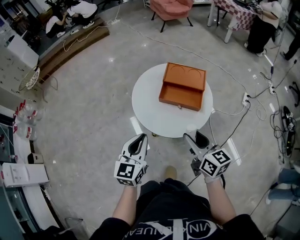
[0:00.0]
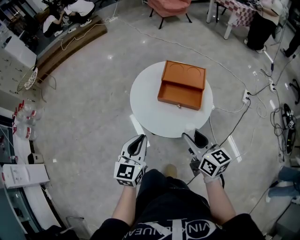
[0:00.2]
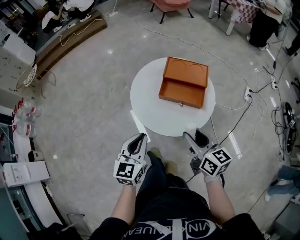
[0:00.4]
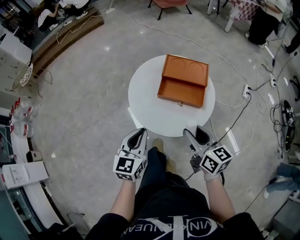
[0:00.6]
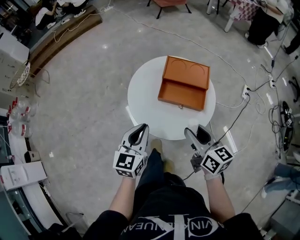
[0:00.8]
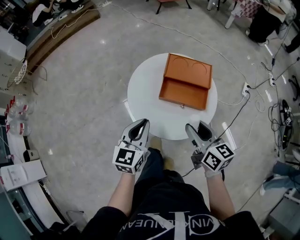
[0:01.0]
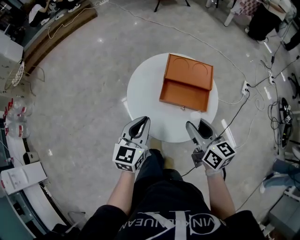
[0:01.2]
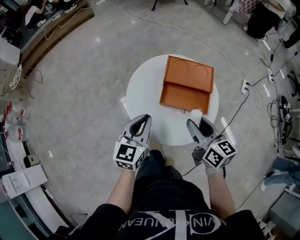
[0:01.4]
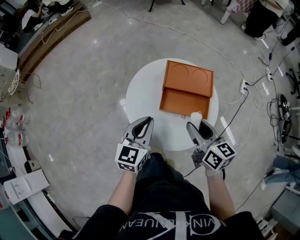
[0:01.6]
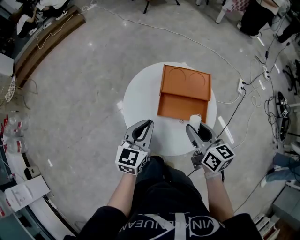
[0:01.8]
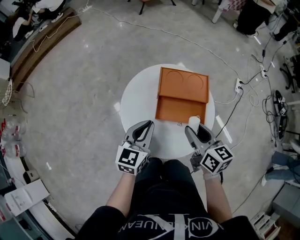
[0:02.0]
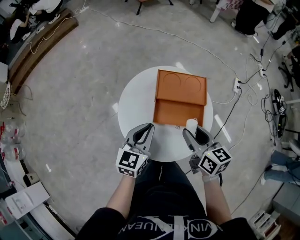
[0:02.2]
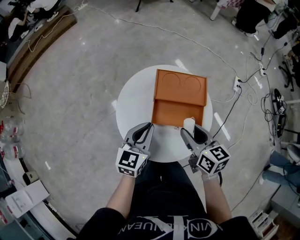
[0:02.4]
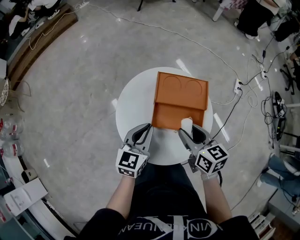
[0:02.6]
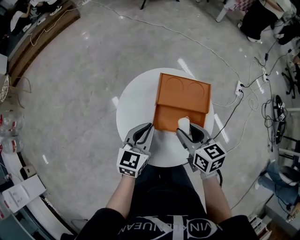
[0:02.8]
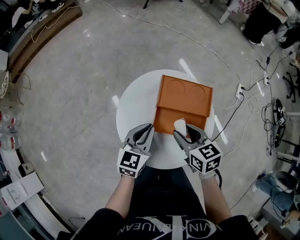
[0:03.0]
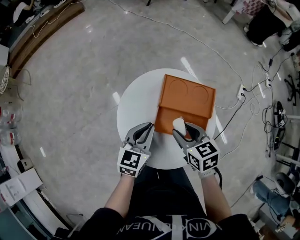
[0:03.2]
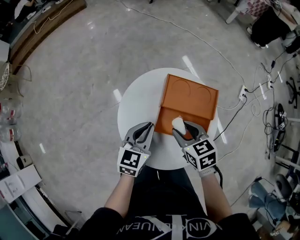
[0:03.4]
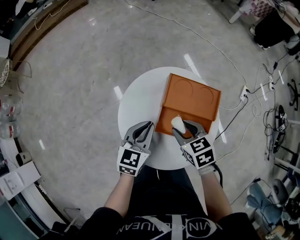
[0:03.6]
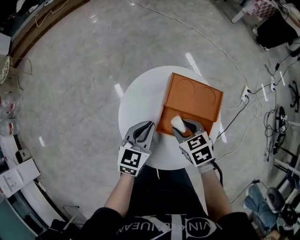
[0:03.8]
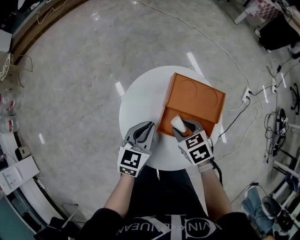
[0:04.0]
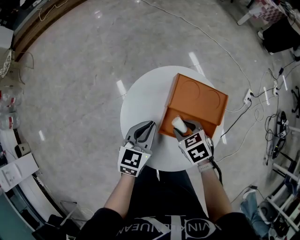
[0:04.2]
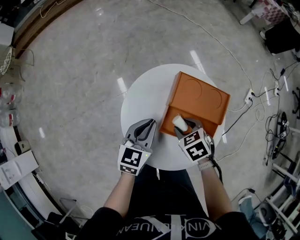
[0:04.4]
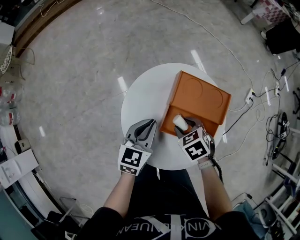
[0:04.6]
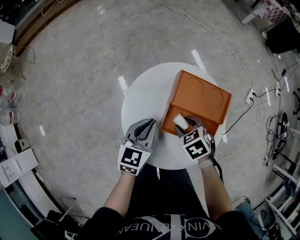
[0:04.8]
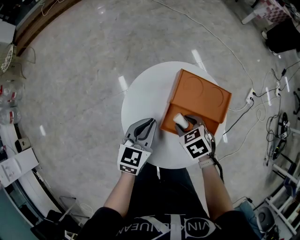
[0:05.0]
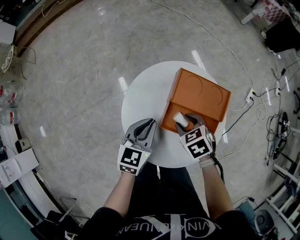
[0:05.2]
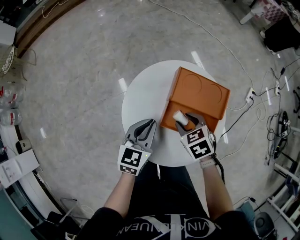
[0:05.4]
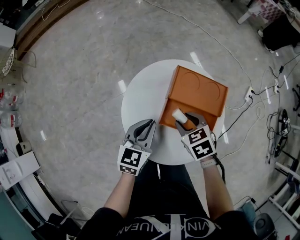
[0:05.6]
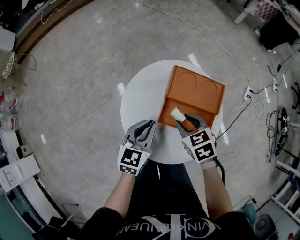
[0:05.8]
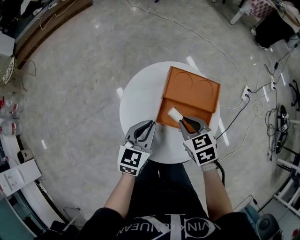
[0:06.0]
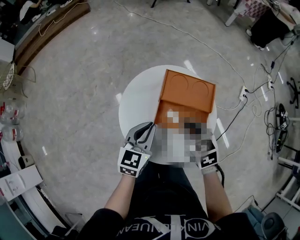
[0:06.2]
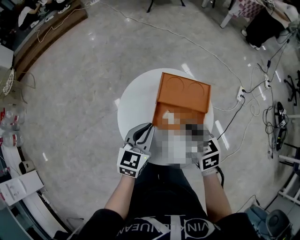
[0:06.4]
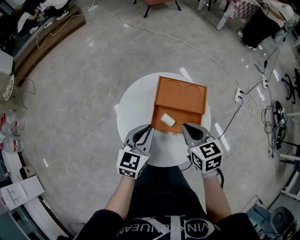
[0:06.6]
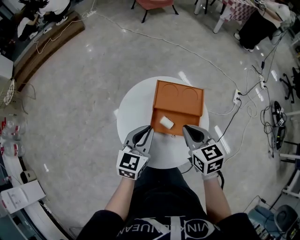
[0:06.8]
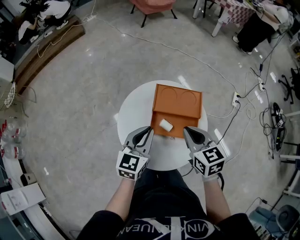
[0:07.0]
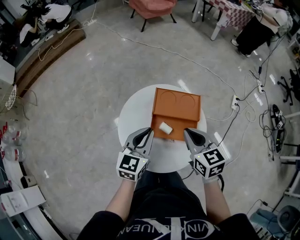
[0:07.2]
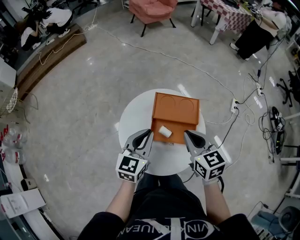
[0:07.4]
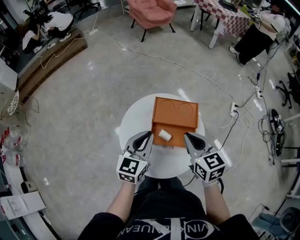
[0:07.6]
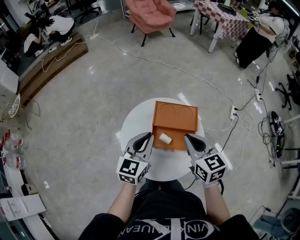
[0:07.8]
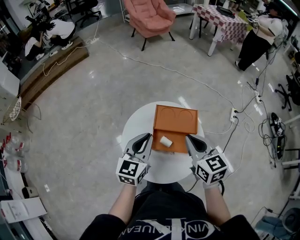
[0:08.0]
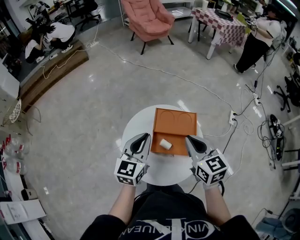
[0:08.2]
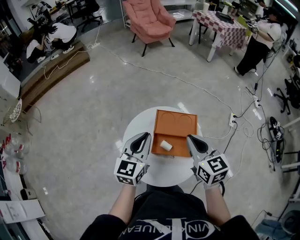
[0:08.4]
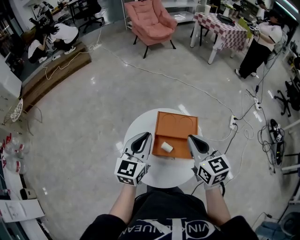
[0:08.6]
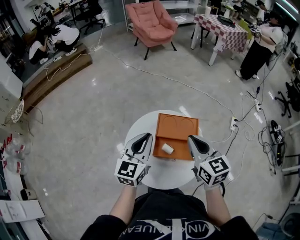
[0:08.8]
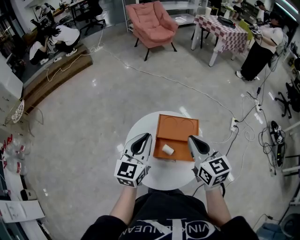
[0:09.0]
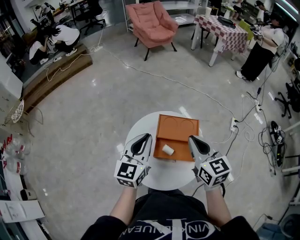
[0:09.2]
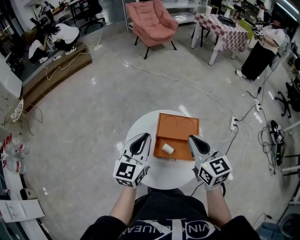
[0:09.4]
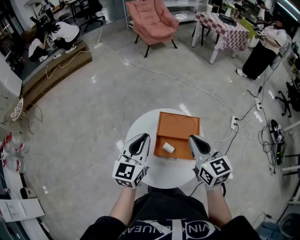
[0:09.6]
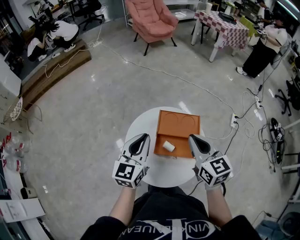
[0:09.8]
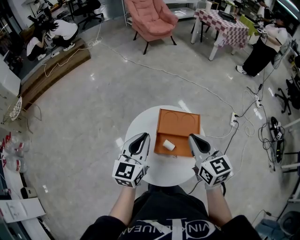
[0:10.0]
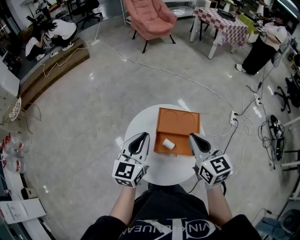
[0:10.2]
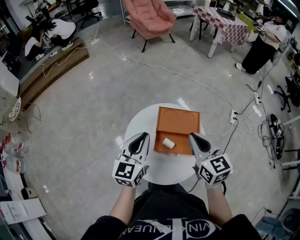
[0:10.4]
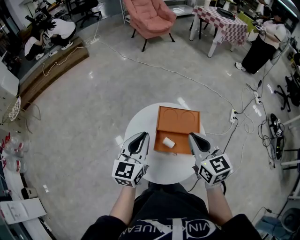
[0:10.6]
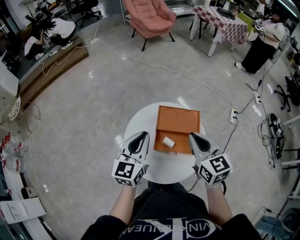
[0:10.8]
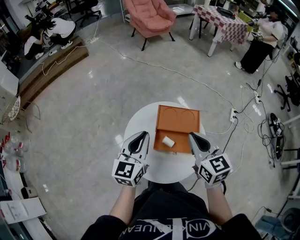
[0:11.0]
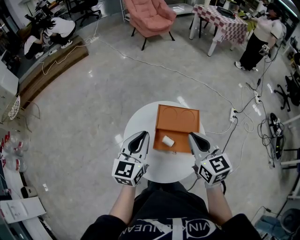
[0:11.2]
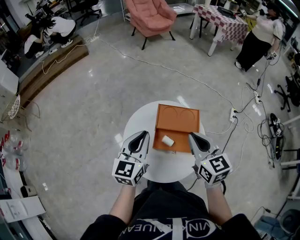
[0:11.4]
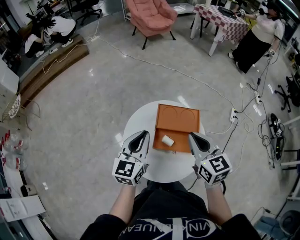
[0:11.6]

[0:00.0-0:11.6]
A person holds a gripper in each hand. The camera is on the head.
0:00.0 to 0:01.4: Both grippers move forward, about 15 cm.
0:01.4 to 0:02.8: Both grippers travel together forward, about 10 cm.
0:02.8 to 0:04.4: The left gripper ends up roughly 5 cm from where it was. The right gripper heads downward, covering about 10 cm, and tips its fingers downward by approximately 30 degrees.
0:04.4 to 0:05.8: The right gripper changes place by about 5 cm.
0:05.8 to 0:07.2: The right gripper travels upward and to the right by approximately 15 cm, changes its angle by about 30 degrees, and closes, while the left gripper shifts roughly 10 cm upward.
0:07.2 to 0:08.8: The two grippers go some 10 cm upward.
0:08.8 to 0:10.2: There are only small adjustments of the grippers.
0:10.2 to 0:11.6: Both grippers stay put.

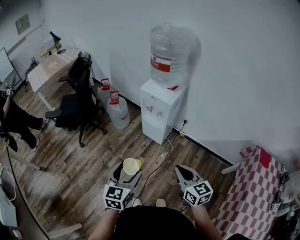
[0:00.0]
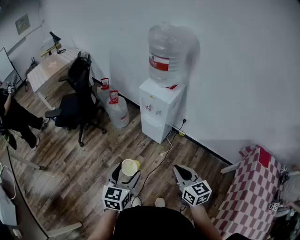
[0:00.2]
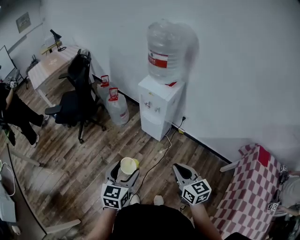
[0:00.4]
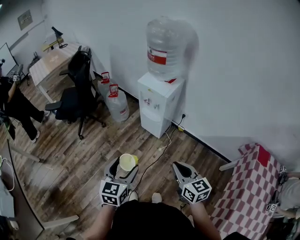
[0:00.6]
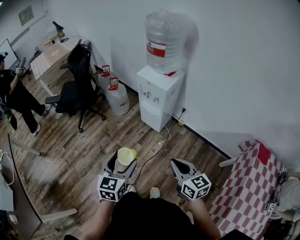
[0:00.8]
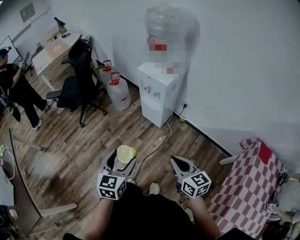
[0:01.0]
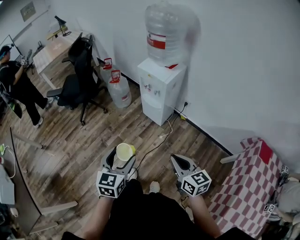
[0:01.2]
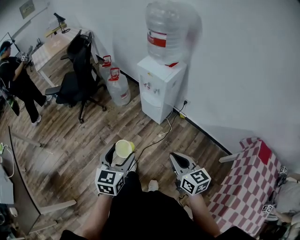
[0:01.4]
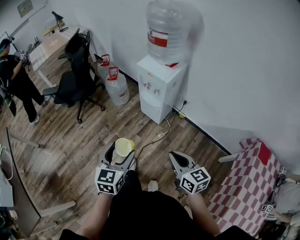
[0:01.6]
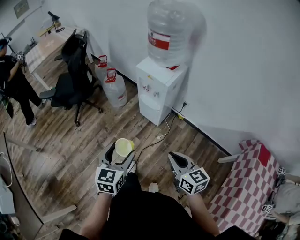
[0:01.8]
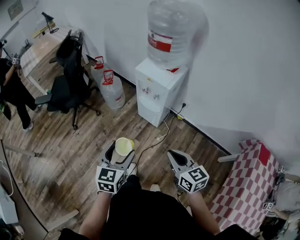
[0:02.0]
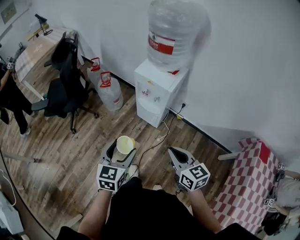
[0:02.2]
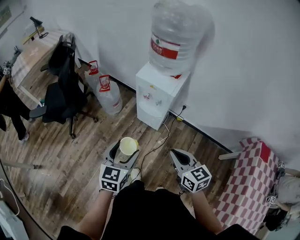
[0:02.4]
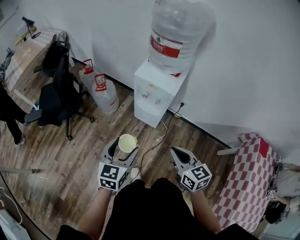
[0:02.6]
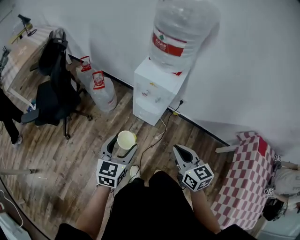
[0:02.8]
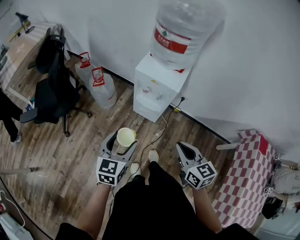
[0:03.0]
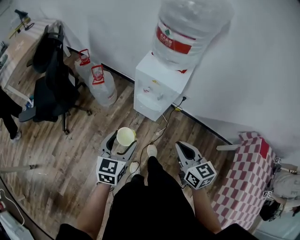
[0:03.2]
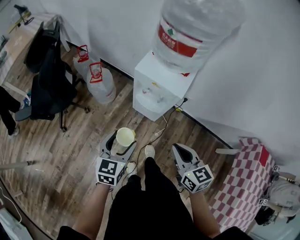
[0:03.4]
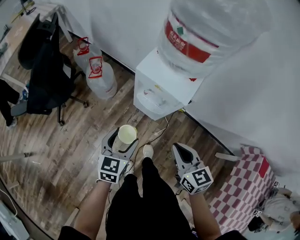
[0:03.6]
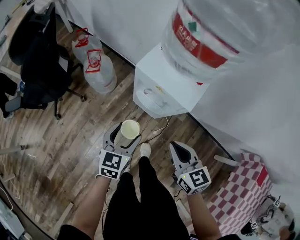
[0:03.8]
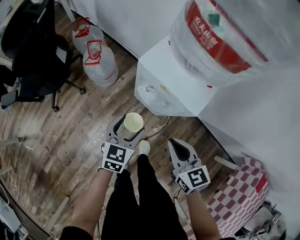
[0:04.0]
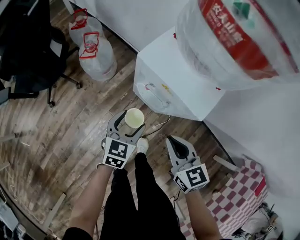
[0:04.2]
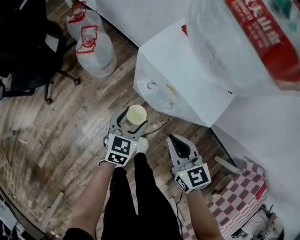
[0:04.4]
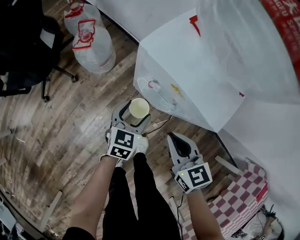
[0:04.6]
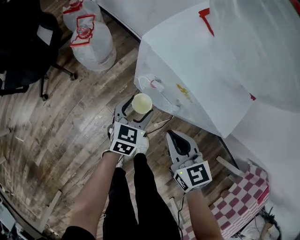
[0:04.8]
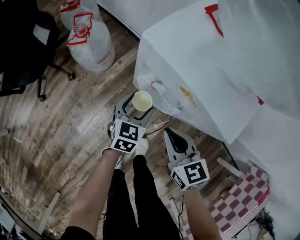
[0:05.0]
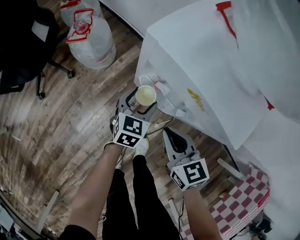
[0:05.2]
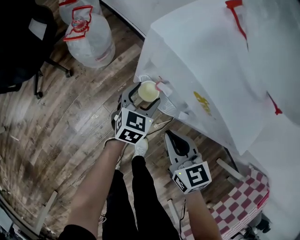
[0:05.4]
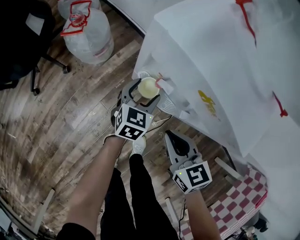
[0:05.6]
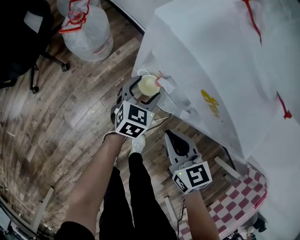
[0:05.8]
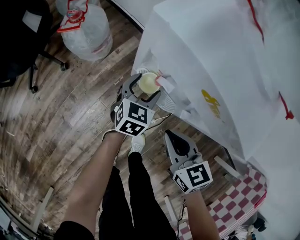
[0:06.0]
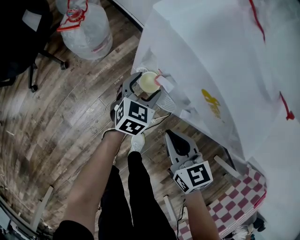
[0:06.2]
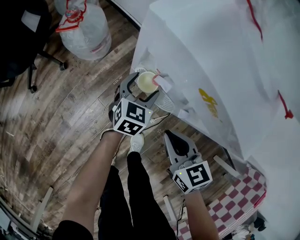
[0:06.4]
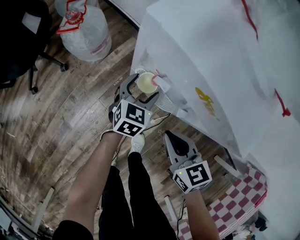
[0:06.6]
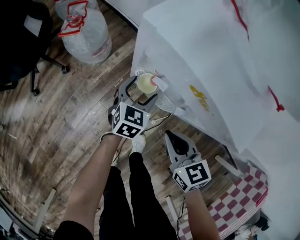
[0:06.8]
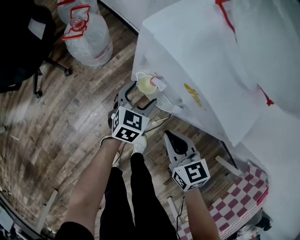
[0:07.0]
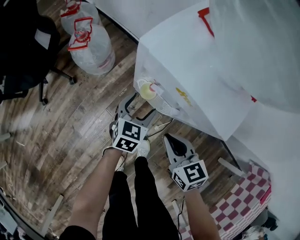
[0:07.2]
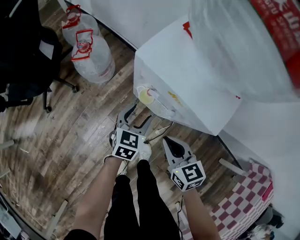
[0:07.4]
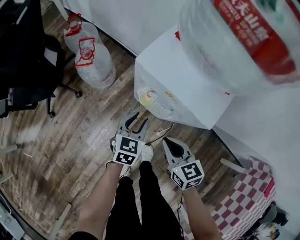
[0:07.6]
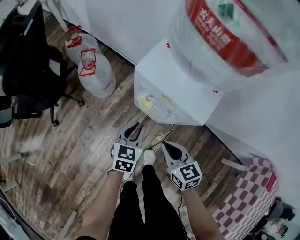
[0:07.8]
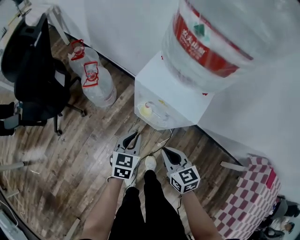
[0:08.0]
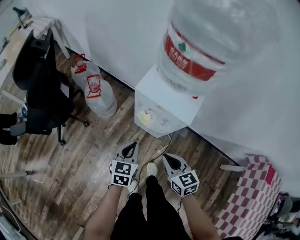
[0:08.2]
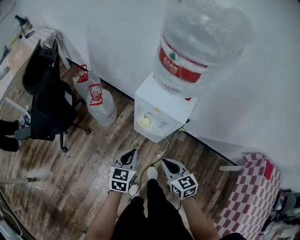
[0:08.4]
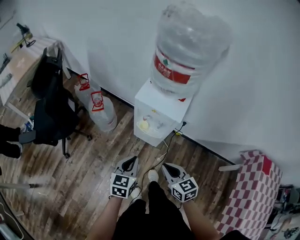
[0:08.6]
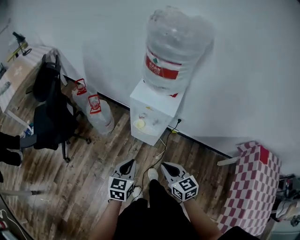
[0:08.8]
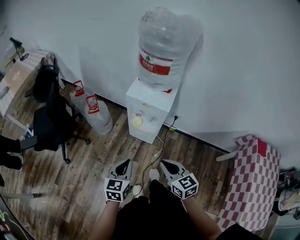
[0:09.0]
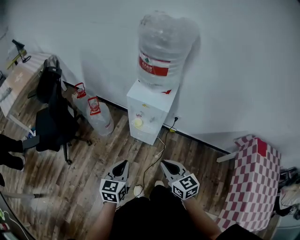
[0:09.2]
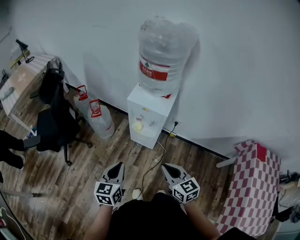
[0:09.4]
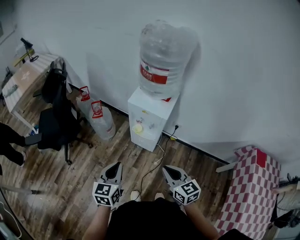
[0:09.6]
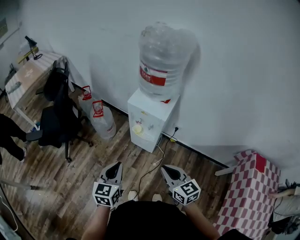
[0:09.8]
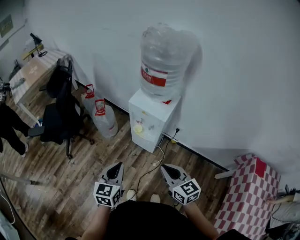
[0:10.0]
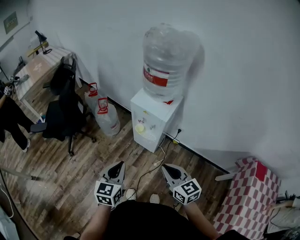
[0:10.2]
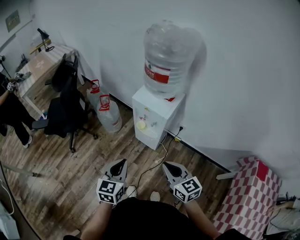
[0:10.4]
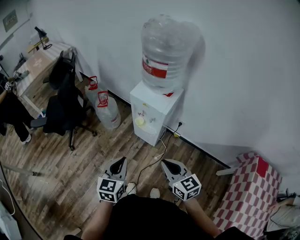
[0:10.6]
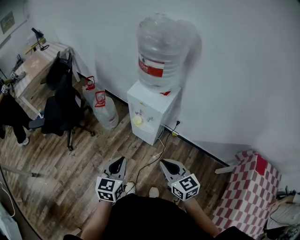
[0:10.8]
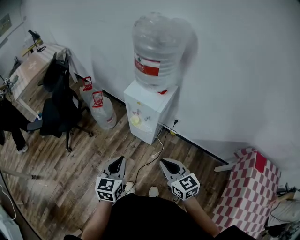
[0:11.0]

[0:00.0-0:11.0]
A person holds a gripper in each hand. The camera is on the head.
0:00.0 to 0:01.6: The right gripper shifts by approximately 5 cm.
0:01.6 to 0:03.2: The right gripper is displaced forward and to the left by some 25 cm. Meanwhile the left gripper shifts about 25 cm forward.
0:03.2 to 0:04.8: The grippers both shift downward and forward by some 35 cm.
0:04.8 to 0:06.2: The left gripper shifts about 10 cm downward and forward. The right gripper moves downward, approximately 10 cm.
0:06.2 to 0:07.8: The right gripper goes about 10 cm upward. The left gripper shifts some 20 cm upward and backward, and closes up.
0:07.8 to 0:09.4: The grippers both shift upward and backward by roughly 35 cm.
0:09.4 to 0:11.0: Both grippers travel together to the right, some 10 cm.

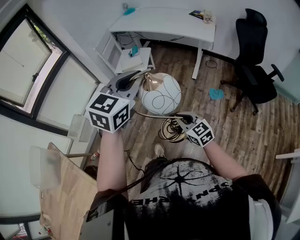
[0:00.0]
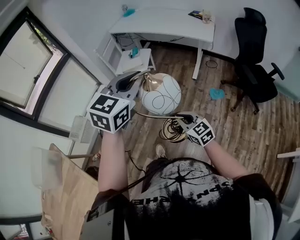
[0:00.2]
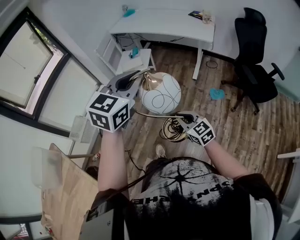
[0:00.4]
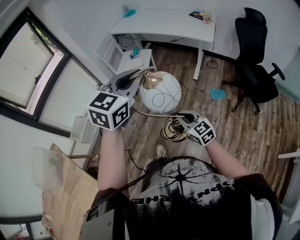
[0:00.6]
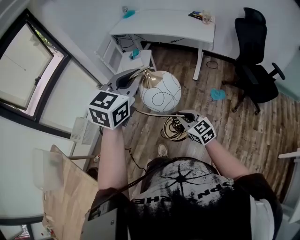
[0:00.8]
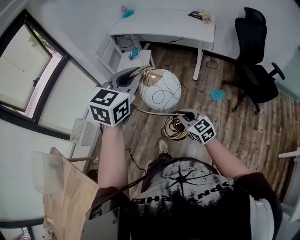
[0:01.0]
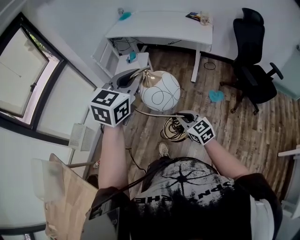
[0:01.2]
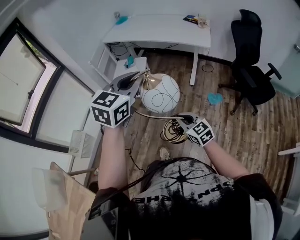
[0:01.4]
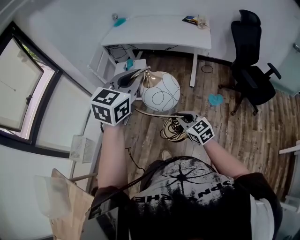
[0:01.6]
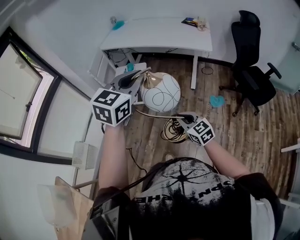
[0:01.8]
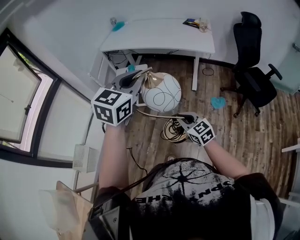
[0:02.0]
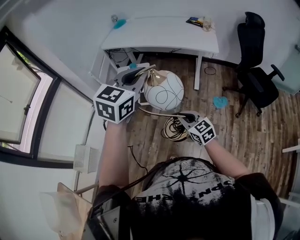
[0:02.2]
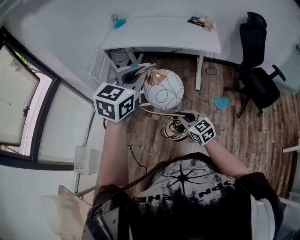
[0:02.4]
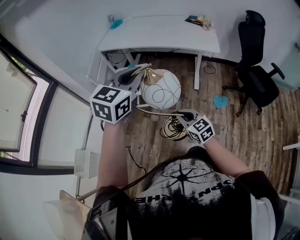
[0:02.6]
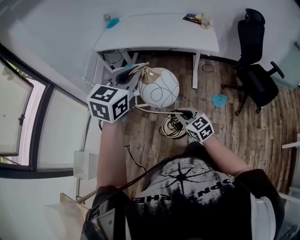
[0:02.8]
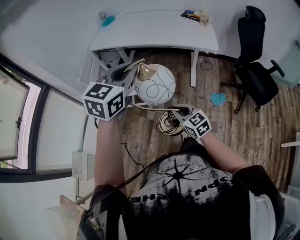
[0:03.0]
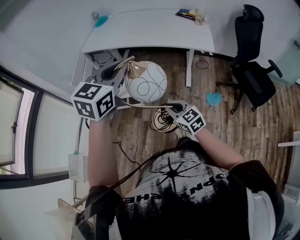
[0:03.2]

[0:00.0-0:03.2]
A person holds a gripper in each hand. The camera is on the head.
0:00.0 to 0:01.6: Both grippers travel together forward, some 10 cm.
0:01.6 to 0:03.2: The two grippers go some 25 cm forward.
